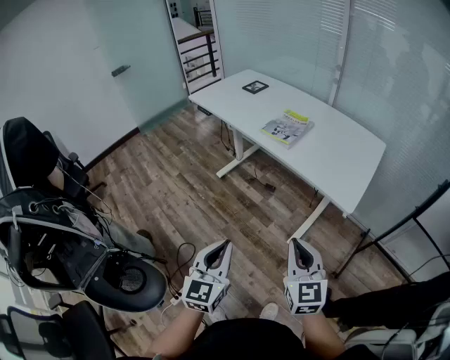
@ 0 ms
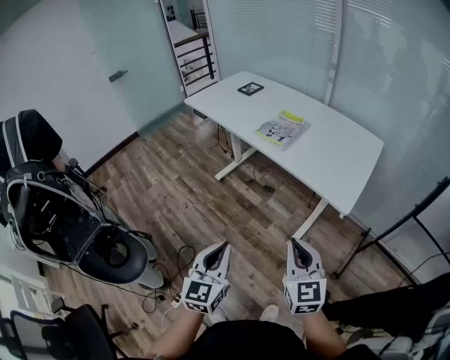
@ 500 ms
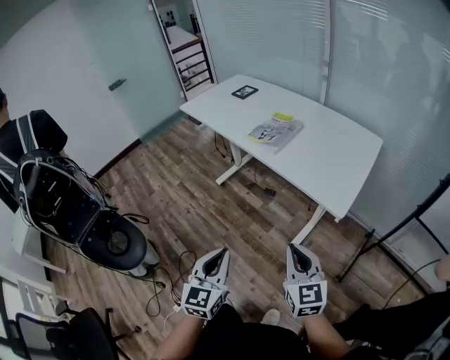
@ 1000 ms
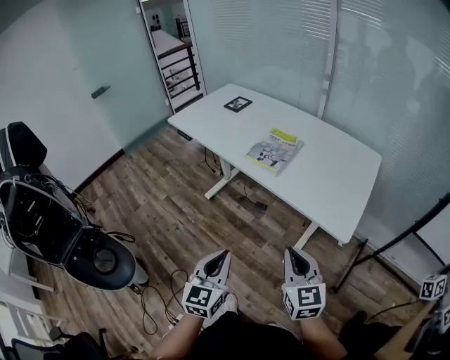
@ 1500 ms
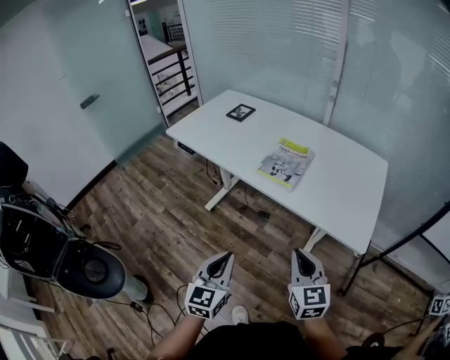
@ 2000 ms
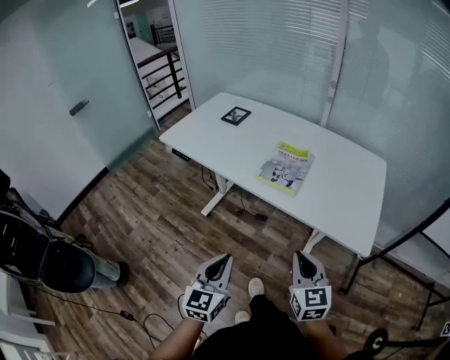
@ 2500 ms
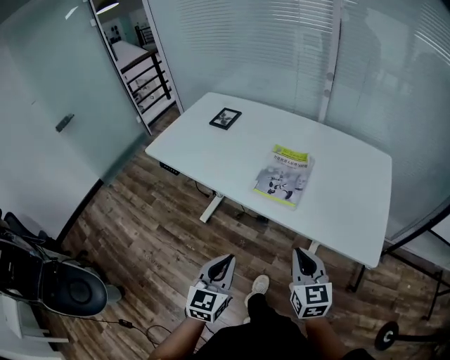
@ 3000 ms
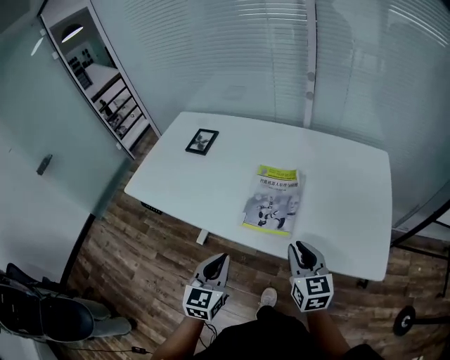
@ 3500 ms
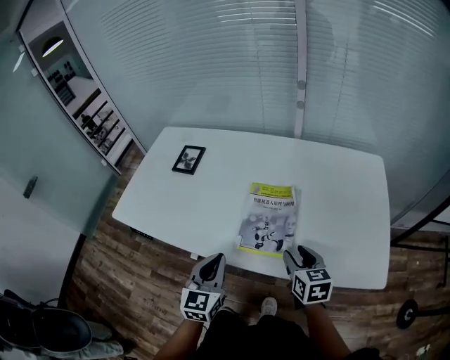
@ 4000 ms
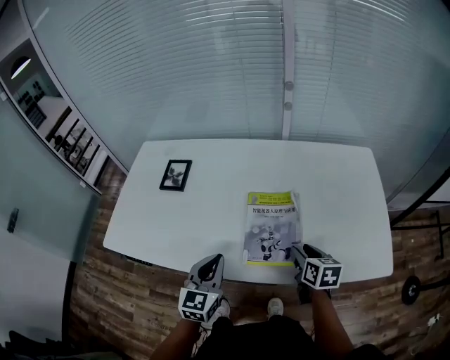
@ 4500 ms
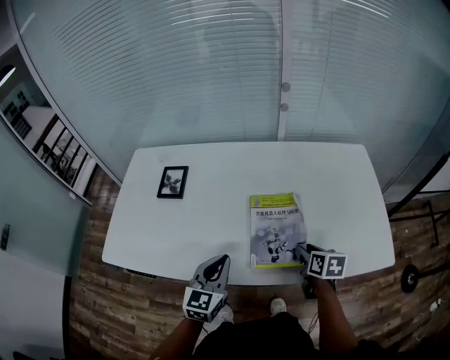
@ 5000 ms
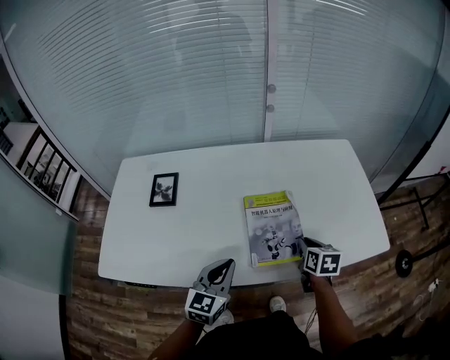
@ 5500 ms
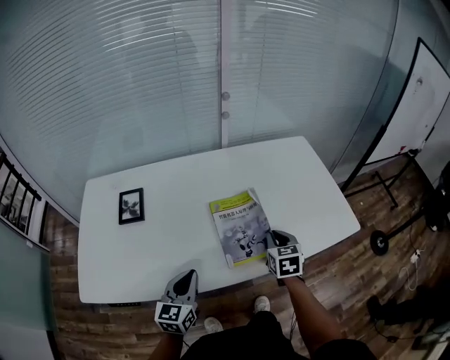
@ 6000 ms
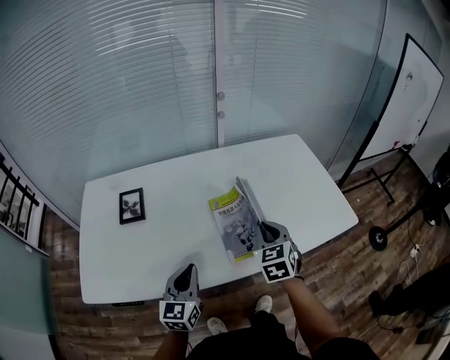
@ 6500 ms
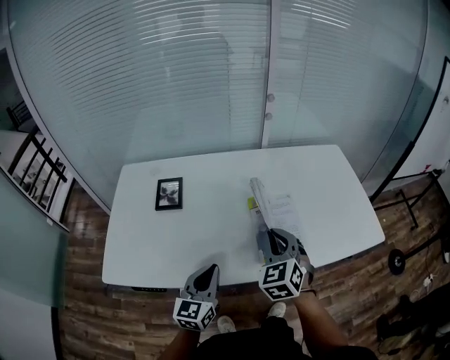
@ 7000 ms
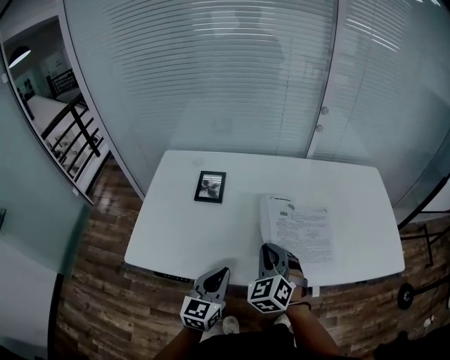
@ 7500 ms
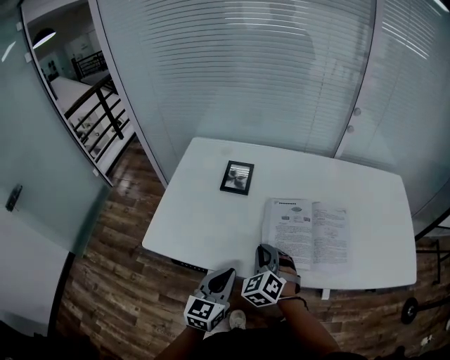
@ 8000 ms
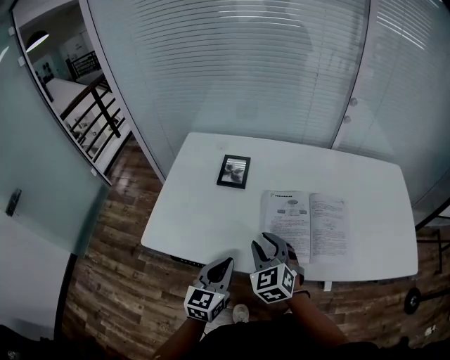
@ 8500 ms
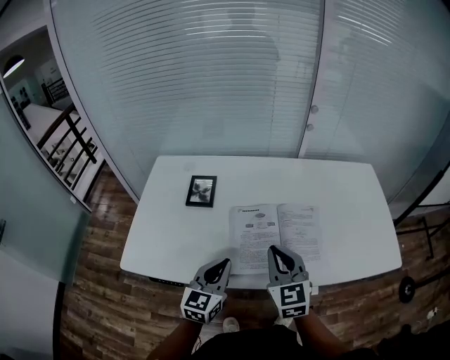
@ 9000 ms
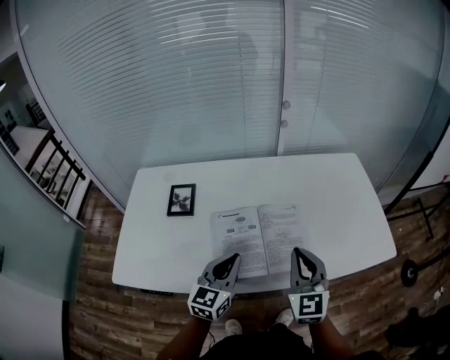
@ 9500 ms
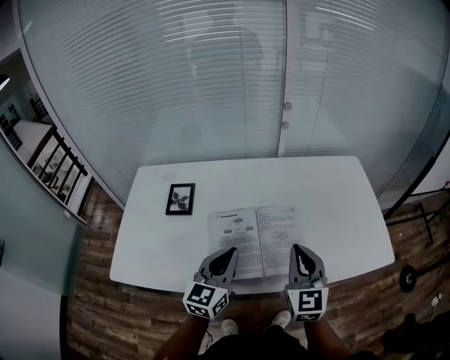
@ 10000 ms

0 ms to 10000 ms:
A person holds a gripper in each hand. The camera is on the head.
0 ms to 2000 ms: The grippers both shift forward by some 20 cm.
2000 ms to 4000 ms: Both grippers move forward, roughly 35 cm. The right gripper swivels some 30 degrees, and opens up.
4000 ms to 6000 ms: The right gripper rotates some 30 degrees, and closes up; the left gripper changes place by roughly 15 cm, and turns by roughly 30 degrees.
6000 ms to 8000 ms: The right gripper shifts roughly 35 cm to the left, and rolls counterclockwise, seen from behind, by approximately 50 degrees, while the left gripper goes approximately 15 cm to the left and backward.
8000 ms to 10000 ms: The right gripper heads to the right and upward, covering about 30 cm, changes its angle by approximately 50 degrees, and opens and closes again. The left gripper shifts roughly 20 cm to the right, forward and upward.

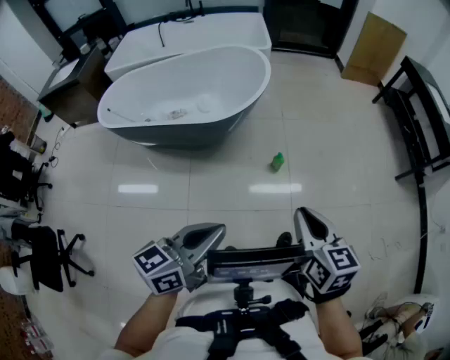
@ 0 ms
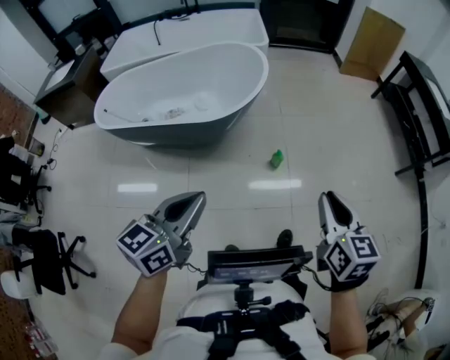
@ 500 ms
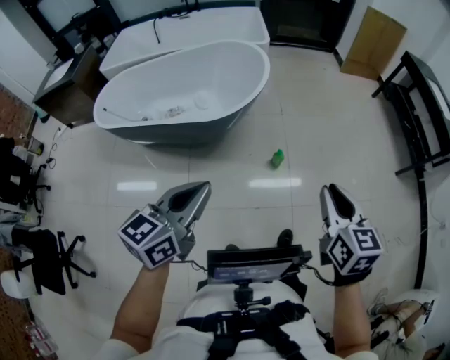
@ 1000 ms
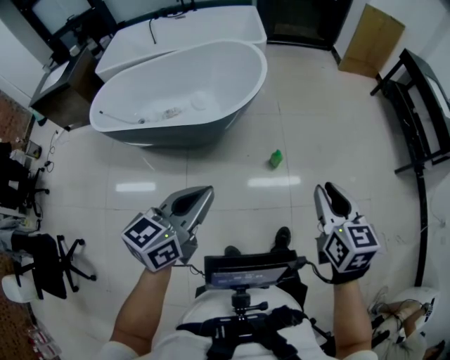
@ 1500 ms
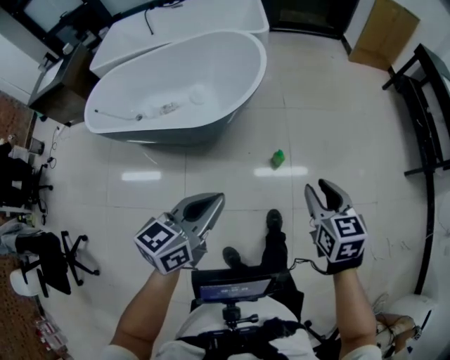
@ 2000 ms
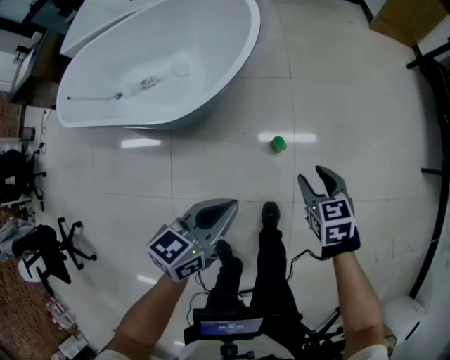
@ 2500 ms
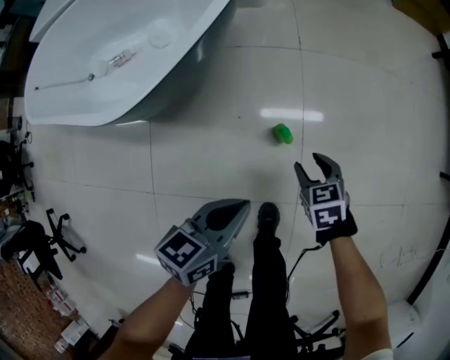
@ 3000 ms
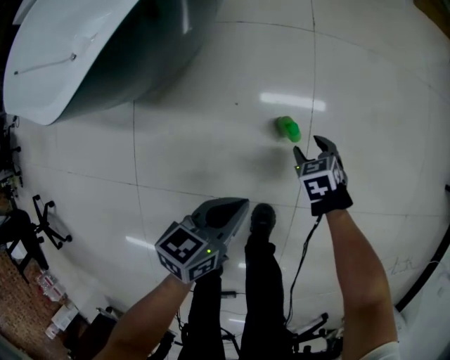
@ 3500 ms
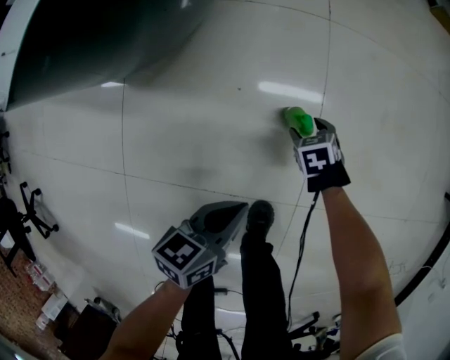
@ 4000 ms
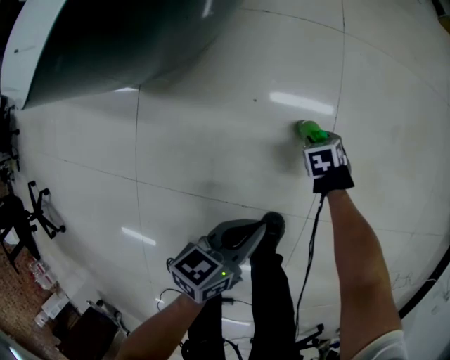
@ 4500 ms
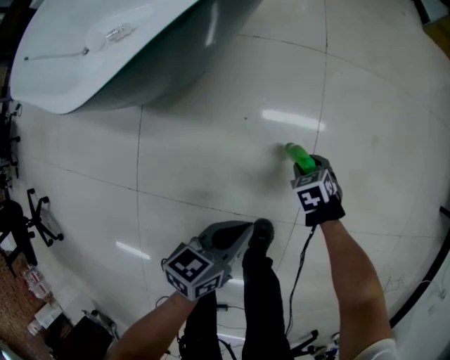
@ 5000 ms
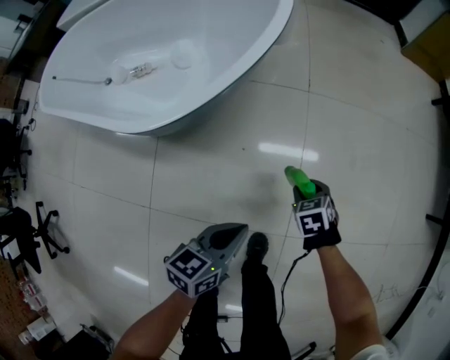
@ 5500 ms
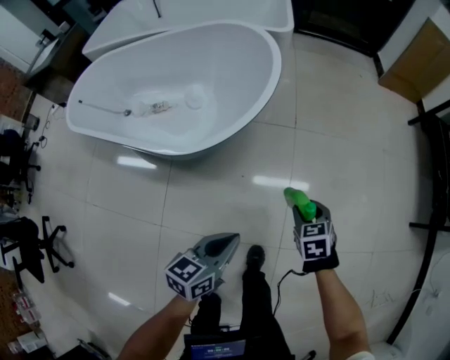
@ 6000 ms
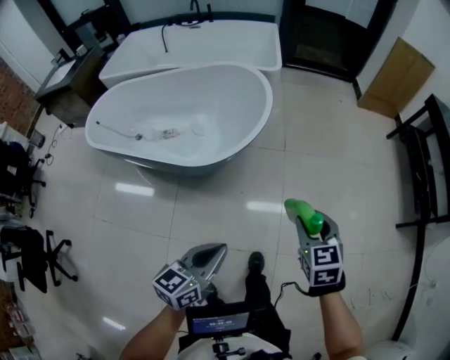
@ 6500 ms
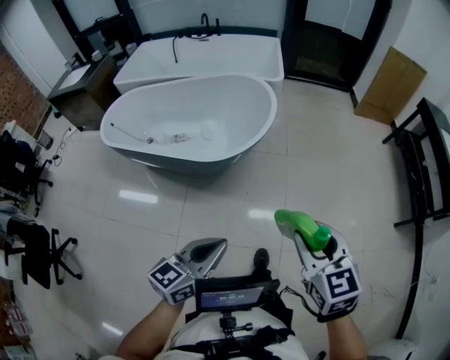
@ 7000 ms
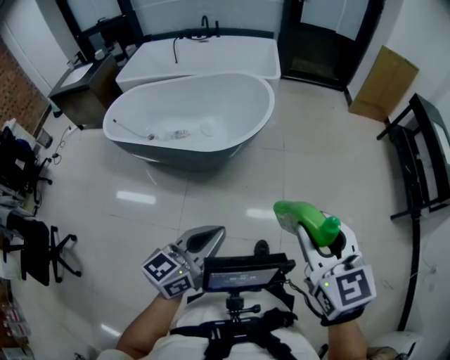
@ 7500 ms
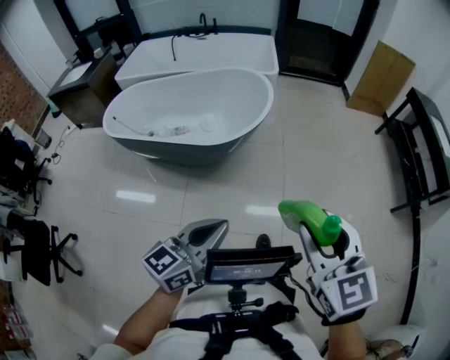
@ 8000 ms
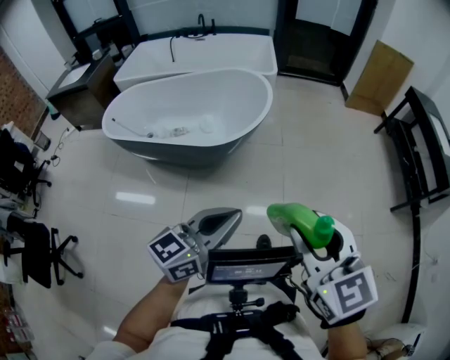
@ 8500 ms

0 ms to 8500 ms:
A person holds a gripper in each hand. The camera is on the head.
0 ms to 2000 ms: The two grippers go about 20 cm forward. The right gripper opens.
2000 ms to 4000 ms: Both grippers travel together downward, roughly 60 cm. The right gripper angles its fingers downward, by about 40 degrees, and opens up, while the left gripper turns by roughly 30 degrees.
4000 ms to 6500 ms: The two grippers go some 60 cm upward. The left gripper turns by roughly 30 degrees. Meanwhile the right gripper tilts its fingers roughly 40 degrees upward, and closes up.
6500 ms to 8500 ms: The left gripper shifts roughly 20 cm upward and backward, and changes its angle by about 20 degrees. The right gripper shifts some 35 cm backward and upward, and turns by approximately 20 degrees.

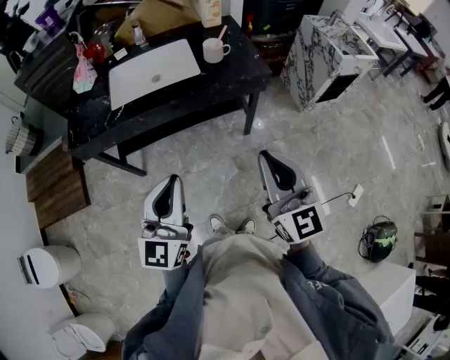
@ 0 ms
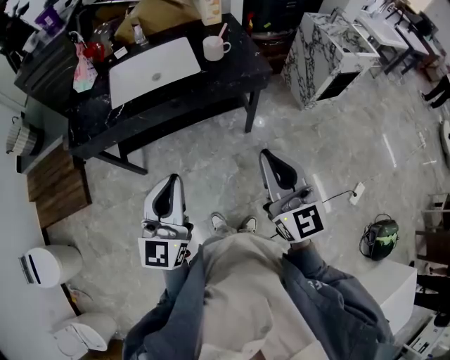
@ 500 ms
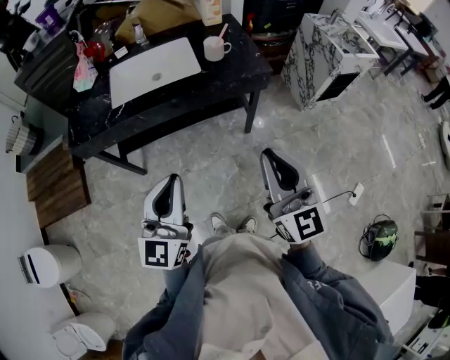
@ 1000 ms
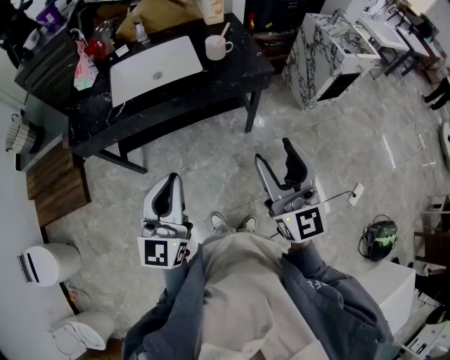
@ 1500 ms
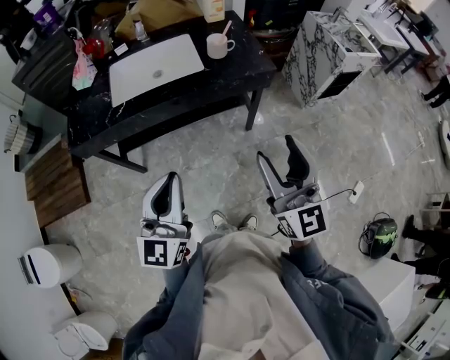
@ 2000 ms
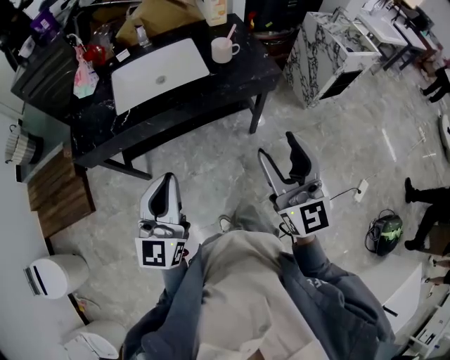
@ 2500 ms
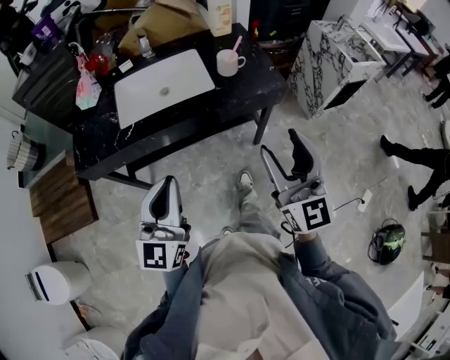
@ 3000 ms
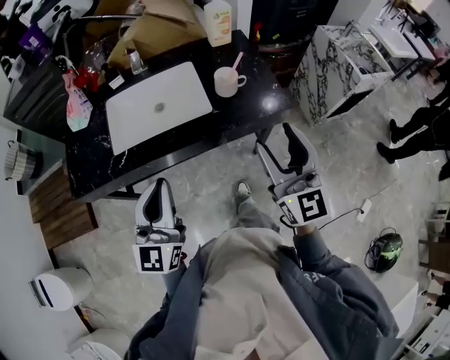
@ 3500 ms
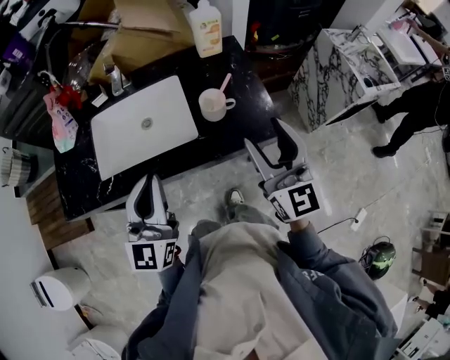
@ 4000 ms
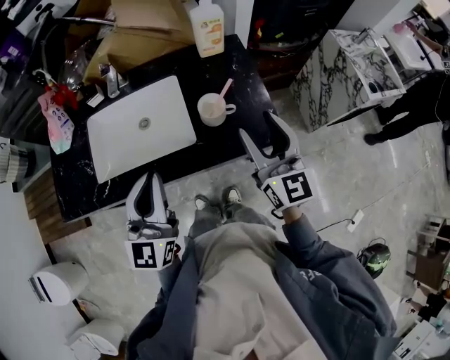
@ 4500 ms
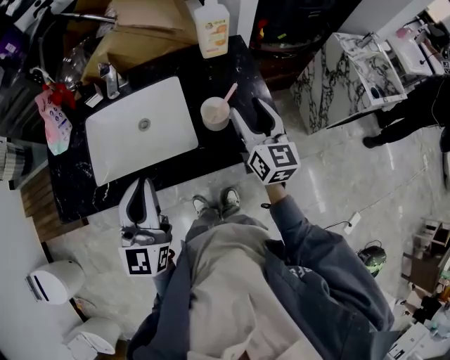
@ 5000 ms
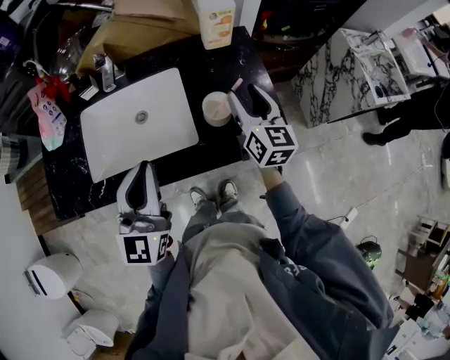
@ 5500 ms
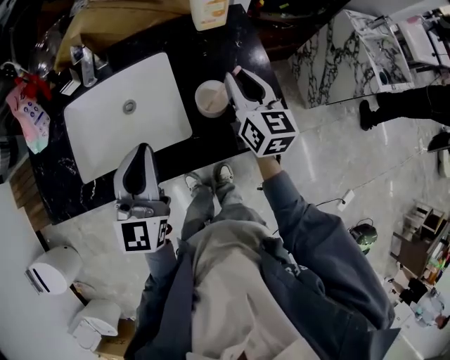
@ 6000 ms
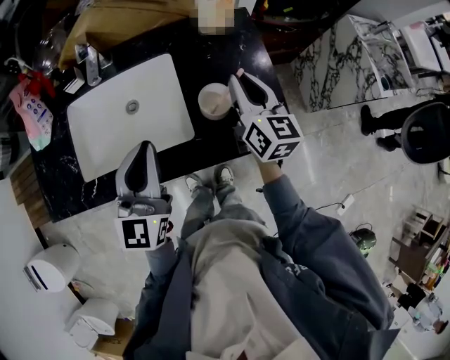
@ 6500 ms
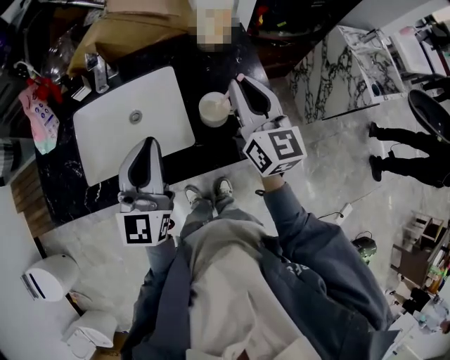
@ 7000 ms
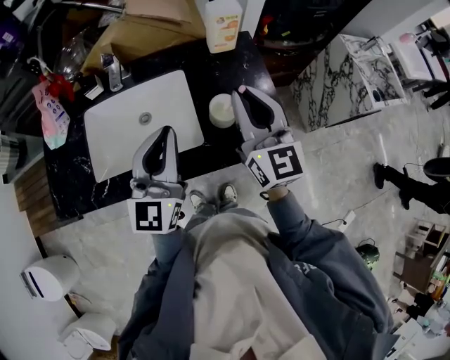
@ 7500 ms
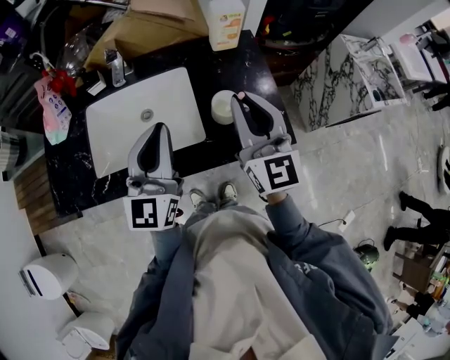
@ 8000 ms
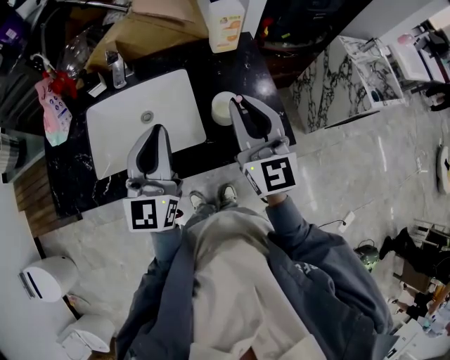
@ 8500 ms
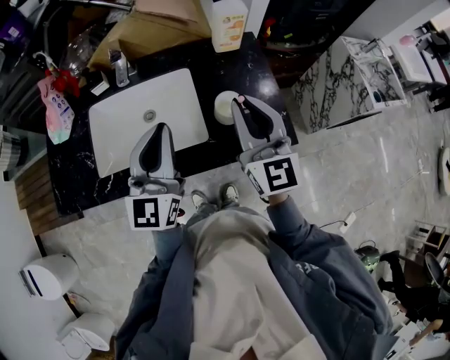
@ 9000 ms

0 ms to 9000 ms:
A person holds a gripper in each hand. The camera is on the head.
0 ms to 2000 ms: The right gripper opens.
2000 ms to 4500 ms: Both grippers move forward, some 40 cm.
4500 ms to 7000 ms: The grippers both shift forward by about 10 cm. The right gripper closes.
7000 ms to 9000 ms: The right gripper goes some 10 cm backward and to the left.
